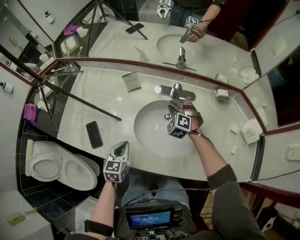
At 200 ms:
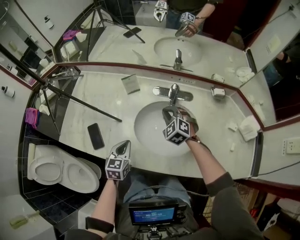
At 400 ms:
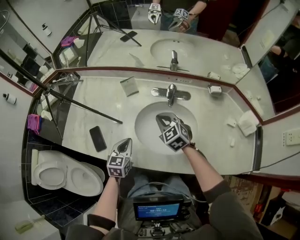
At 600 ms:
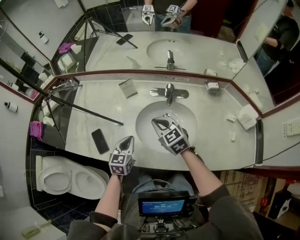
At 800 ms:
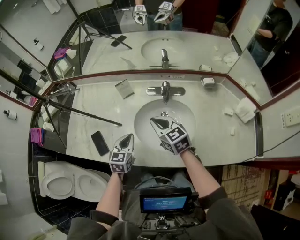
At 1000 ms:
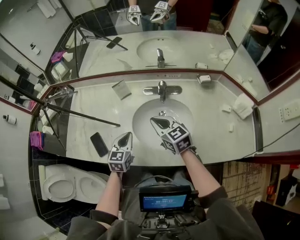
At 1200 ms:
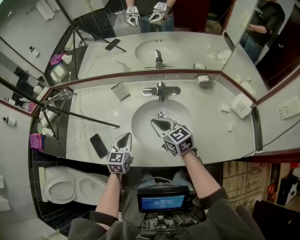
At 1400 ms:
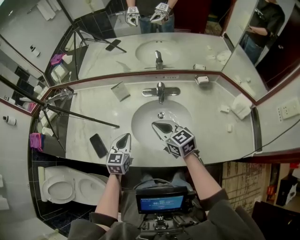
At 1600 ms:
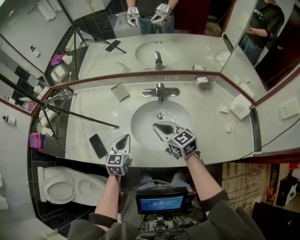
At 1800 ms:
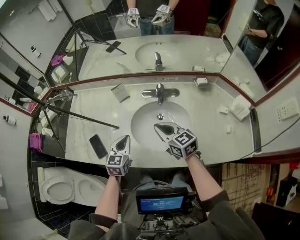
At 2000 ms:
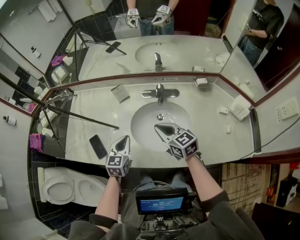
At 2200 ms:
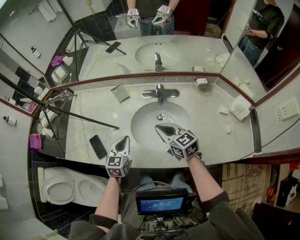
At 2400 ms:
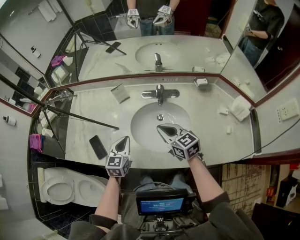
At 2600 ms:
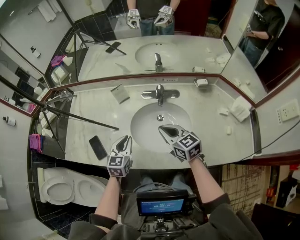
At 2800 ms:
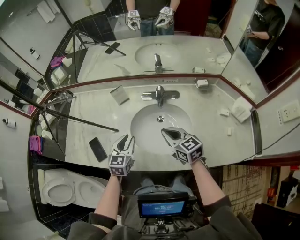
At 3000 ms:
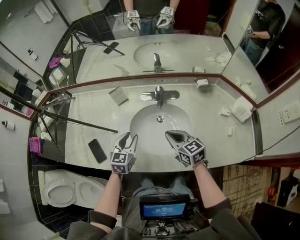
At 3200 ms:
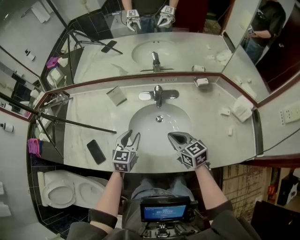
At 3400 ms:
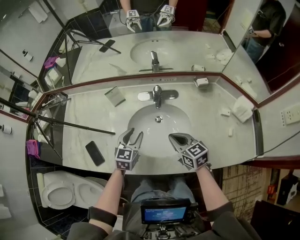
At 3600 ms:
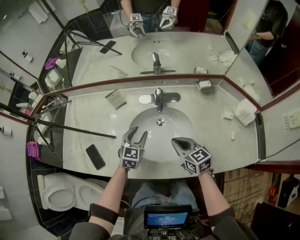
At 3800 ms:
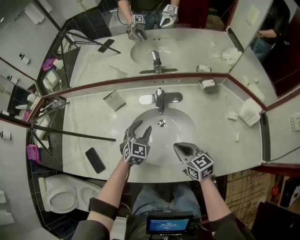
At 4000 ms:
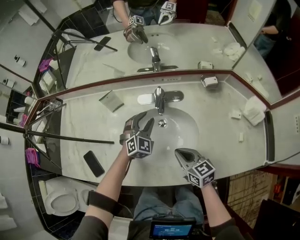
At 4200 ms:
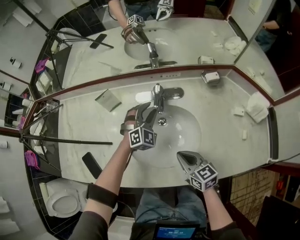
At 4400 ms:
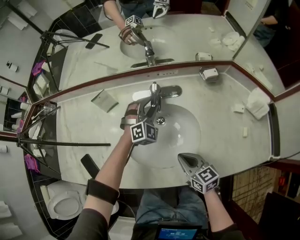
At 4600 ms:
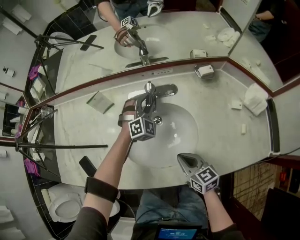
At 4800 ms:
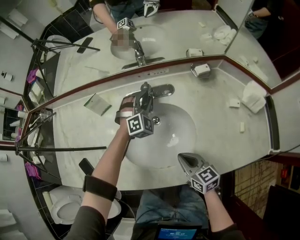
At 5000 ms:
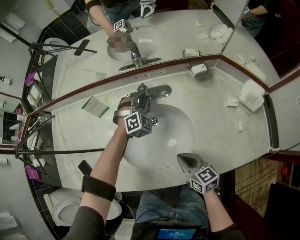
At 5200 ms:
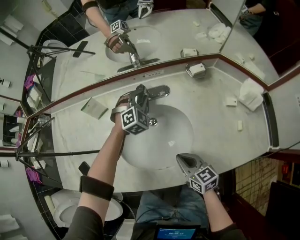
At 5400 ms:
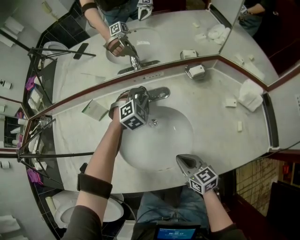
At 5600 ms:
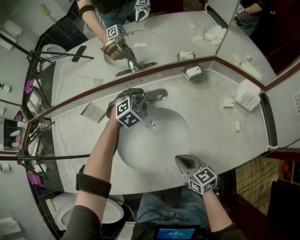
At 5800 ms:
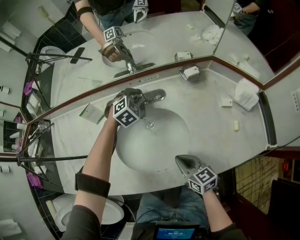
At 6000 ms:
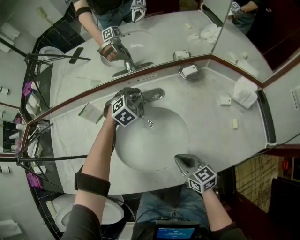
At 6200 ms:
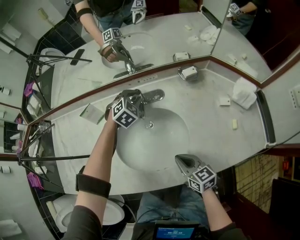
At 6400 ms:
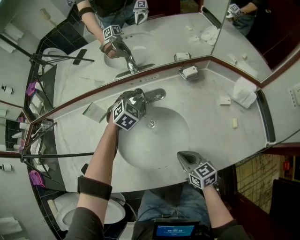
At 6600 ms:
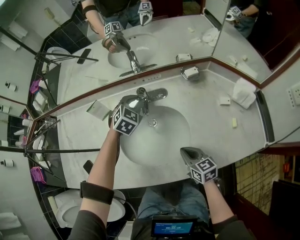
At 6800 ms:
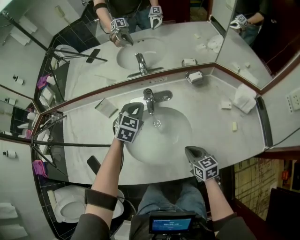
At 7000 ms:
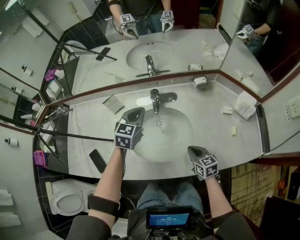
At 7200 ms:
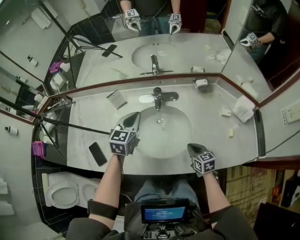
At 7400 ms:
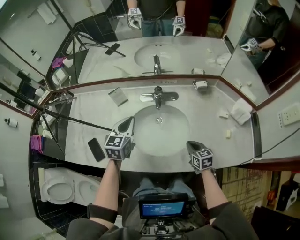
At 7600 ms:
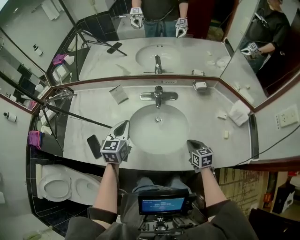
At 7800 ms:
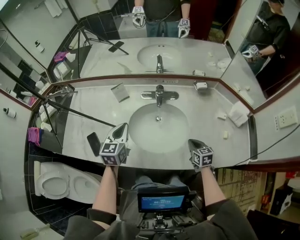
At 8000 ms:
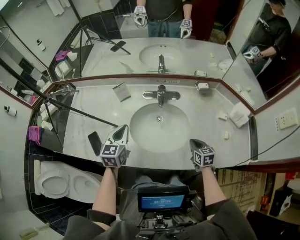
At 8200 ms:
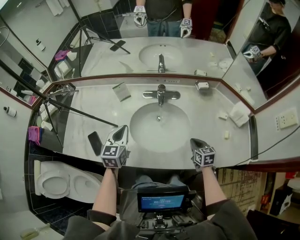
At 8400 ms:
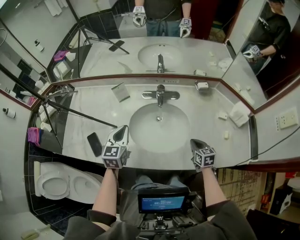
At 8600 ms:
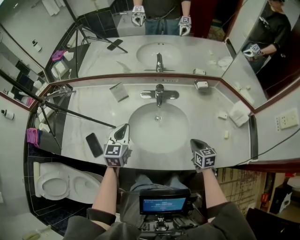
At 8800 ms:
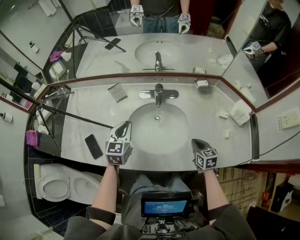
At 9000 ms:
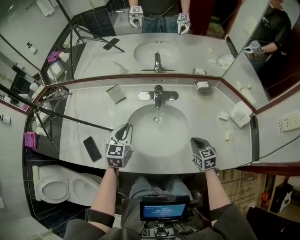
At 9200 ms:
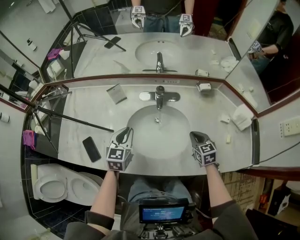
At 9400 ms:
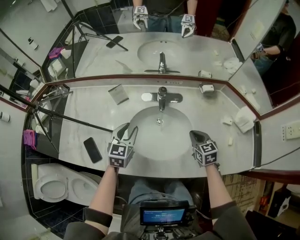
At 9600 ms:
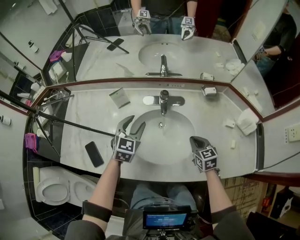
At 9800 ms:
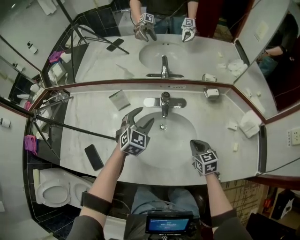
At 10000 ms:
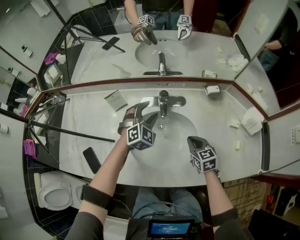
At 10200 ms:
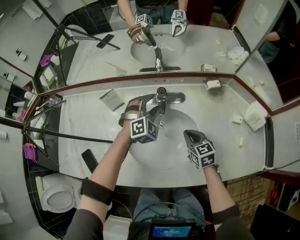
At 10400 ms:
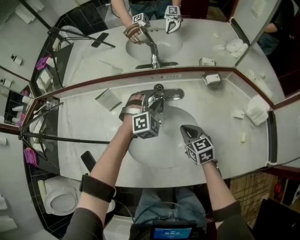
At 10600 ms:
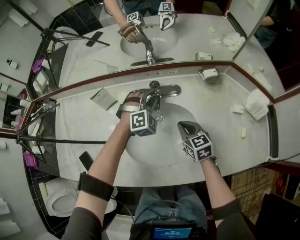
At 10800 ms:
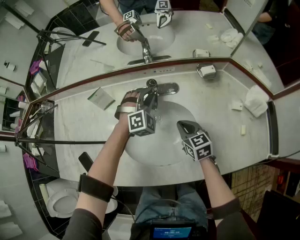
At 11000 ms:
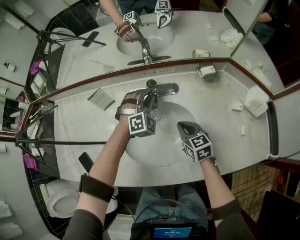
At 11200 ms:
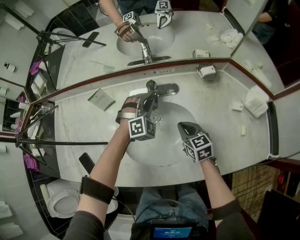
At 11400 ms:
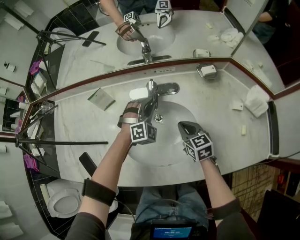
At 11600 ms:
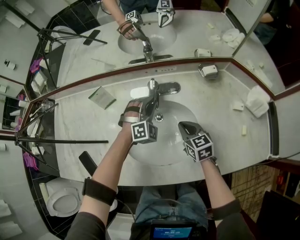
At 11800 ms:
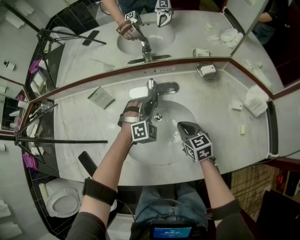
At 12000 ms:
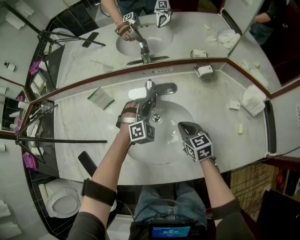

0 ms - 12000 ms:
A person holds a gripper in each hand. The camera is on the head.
0 ms - 1600 ms: The right gripper heads backward and upward, covering approximately 20 cm, and rotates around the line of its fingers by about 60 degrees, clockwise from behind, while the left gripper goes approximately 5 cm upward.
1600 ms - 3000 ms: The left gripper ends up about 5 cm from where it was, and opens, while the right gripper travels to the right by some 5 cm.
3000 ms - 4400 ms: The left gripper is displaced forward, to the right and downward by approximately 25 cm, and twists approximately 60 degrees clockwise, seen from behind, while the right gripper is displaced downward by some 10 cm.
4400 ms - 6000 ms: The left gripper goes roughly 5 cm forward, and changes its angle by about 30 degrees.
6000 ms - 7600 ms: The left gripper heads backward, upward and to the left, covering about 35 cm, rotates around the line of its fingers by some 60 degrees, counterclockwise from behind, and closes; the right gripper is displaced to the right by roughly 5 cm.
7600 ms - 9000 ms: The grippers move only a little.
9000 ms - 10400 ms: The right gripper is displaced forward and to the left by approximately 15 cm. Meanwhile the left gripper travels forward, to the right and downward by about 25 cm, twists about 60 degrees clockwise, seen from behind, and opens its fingers.
10400 ms - 12000 ms: The left gripper closes up.

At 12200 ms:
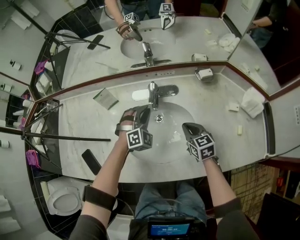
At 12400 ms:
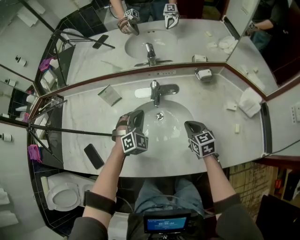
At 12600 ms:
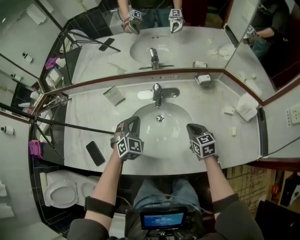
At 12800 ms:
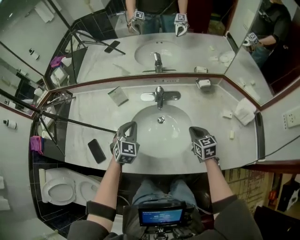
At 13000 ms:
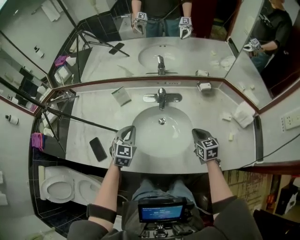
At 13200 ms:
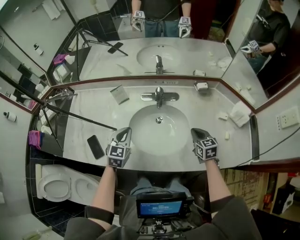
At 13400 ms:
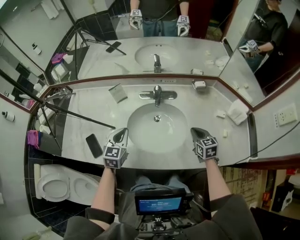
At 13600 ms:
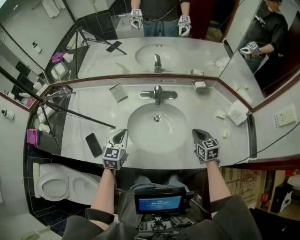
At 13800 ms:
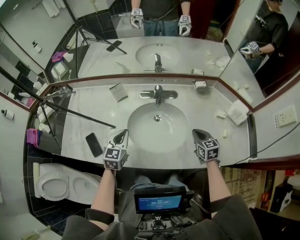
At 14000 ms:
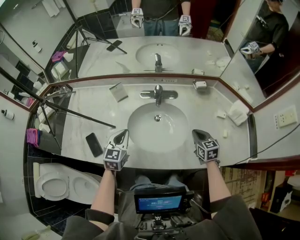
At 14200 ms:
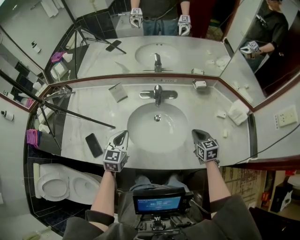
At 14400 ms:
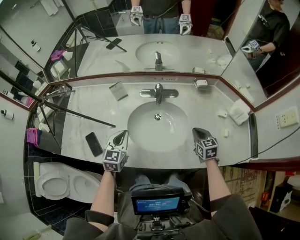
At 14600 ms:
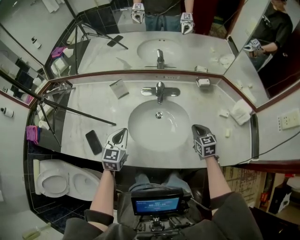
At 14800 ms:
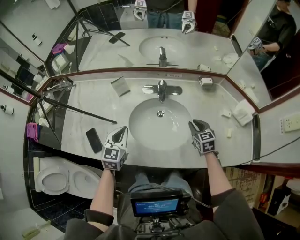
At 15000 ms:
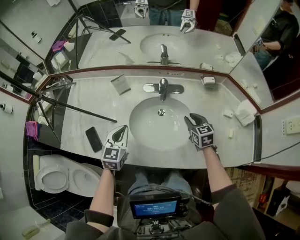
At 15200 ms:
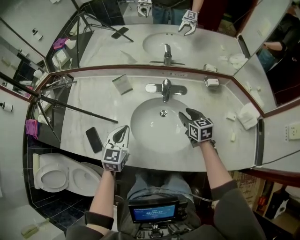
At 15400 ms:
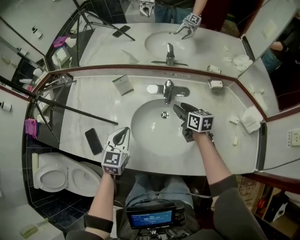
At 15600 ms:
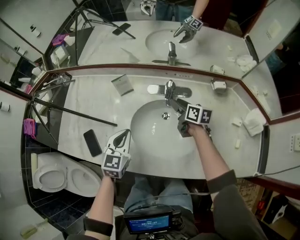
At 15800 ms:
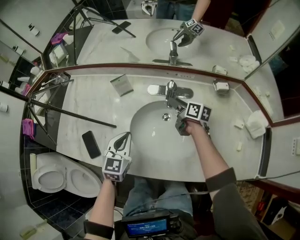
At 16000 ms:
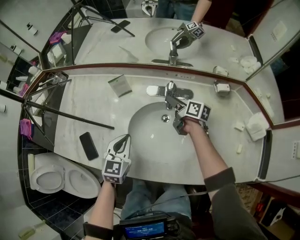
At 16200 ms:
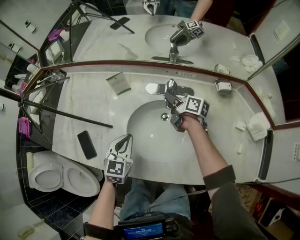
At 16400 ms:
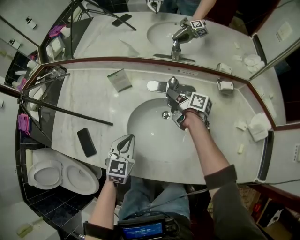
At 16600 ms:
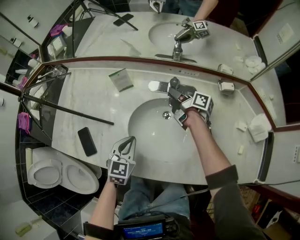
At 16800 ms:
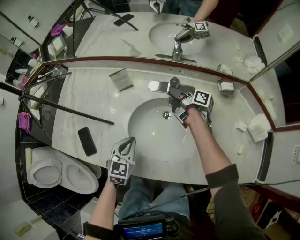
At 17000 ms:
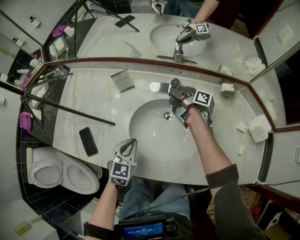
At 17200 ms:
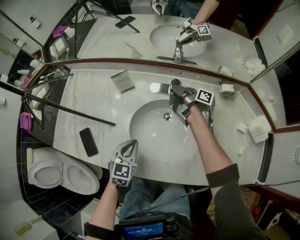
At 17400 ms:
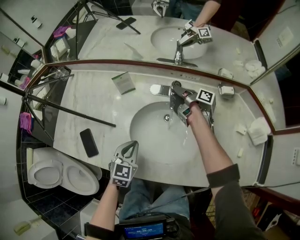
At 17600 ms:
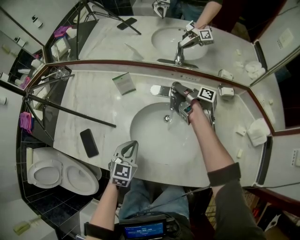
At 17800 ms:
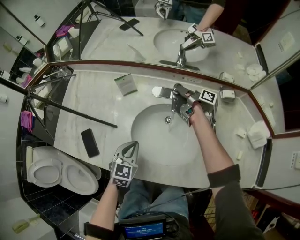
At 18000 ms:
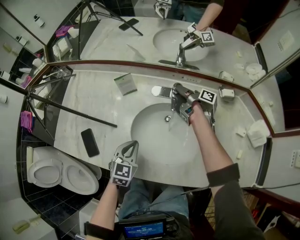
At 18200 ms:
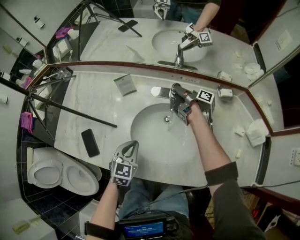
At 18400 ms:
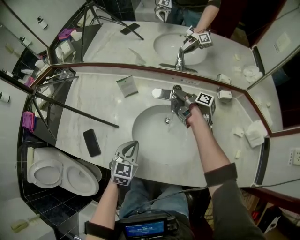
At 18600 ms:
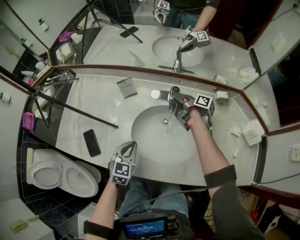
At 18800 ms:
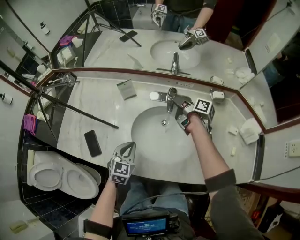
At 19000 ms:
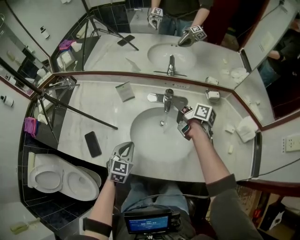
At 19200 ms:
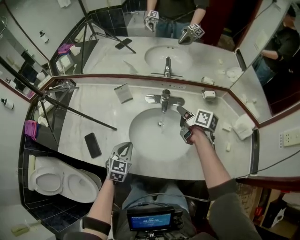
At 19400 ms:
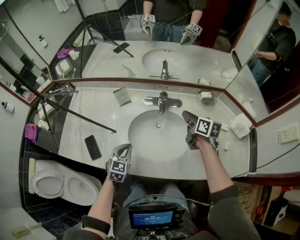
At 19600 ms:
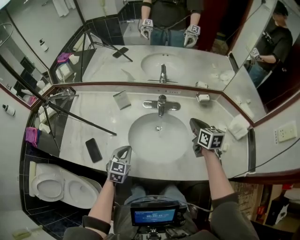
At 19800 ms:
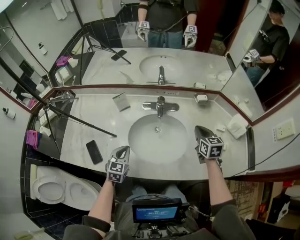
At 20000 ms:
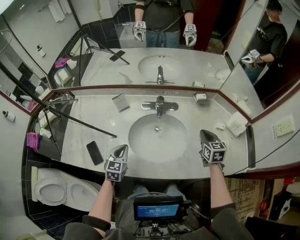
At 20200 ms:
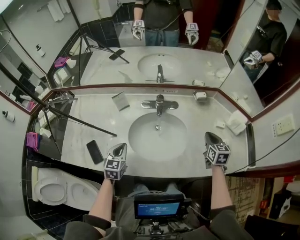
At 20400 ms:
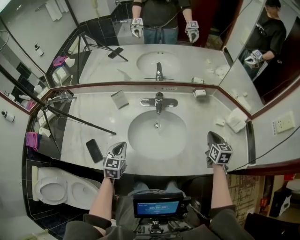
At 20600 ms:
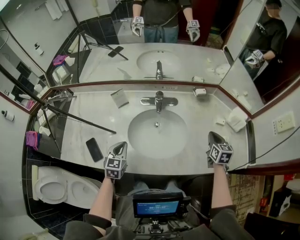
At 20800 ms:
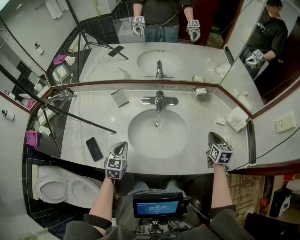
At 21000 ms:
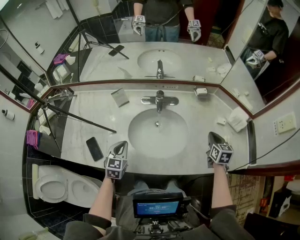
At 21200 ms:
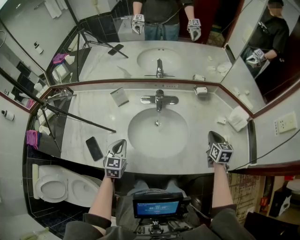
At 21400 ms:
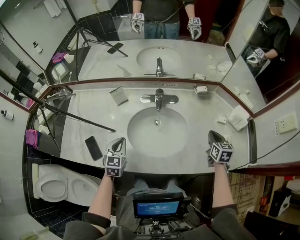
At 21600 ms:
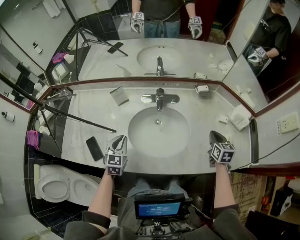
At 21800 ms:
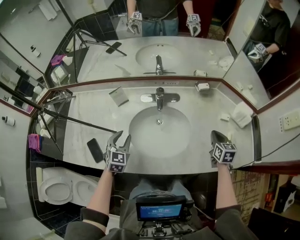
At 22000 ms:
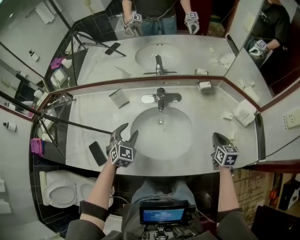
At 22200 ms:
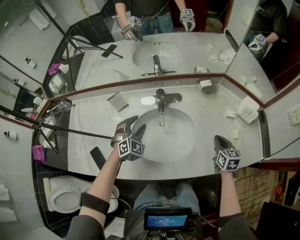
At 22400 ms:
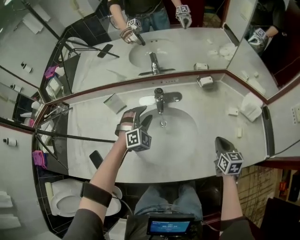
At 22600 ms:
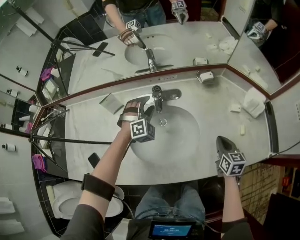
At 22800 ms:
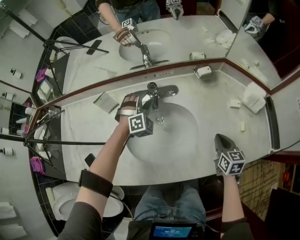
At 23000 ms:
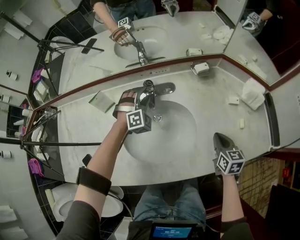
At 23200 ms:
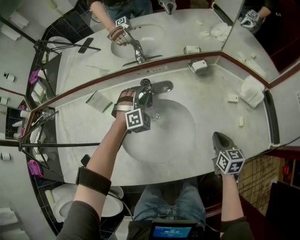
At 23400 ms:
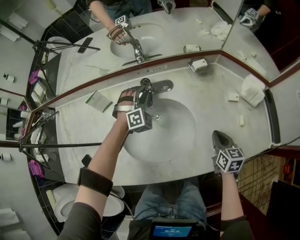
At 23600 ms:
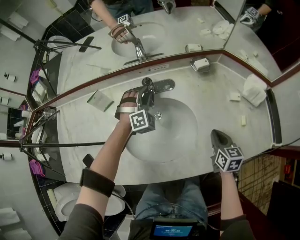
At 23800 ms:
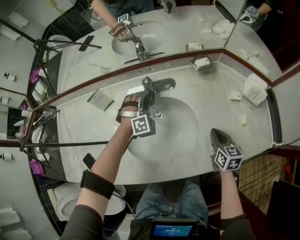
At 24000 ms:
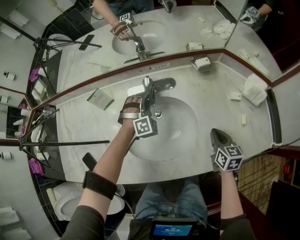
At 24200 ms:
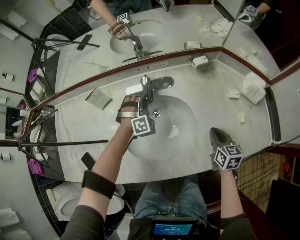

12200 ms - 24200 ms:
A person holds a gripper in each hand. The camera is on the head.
12200 ms - 13800 ms: The left gripper heads backward, to the left and upward, covering some 25 cm, and rolls counterclockwise, seen from behind, by approximately 60 degrees. The right gripper heads backward, upward and to the right, covering approximately 10 cm.
13800 ms - 15200 ms: The right gripper goes about 15 cm forward and to the left, and opens.
15200 ms - 16600 ms: The left gripper moves downward, some 10 cm. The right gripper shifts roughly 15 cm forward and to the left, rotates around the line of its fingers by approximately 60 degrees, clockwise from behind, and closes up.
16600 ms - 18200 ms: The grippers stay close to where they were, moving slightly.
18200 ms - 19800 ms: The right gripper shifts about 30 cm backward, to the right and upward, rotates around the line of its fingers by about 80 degrees, counterclockwise from behind, and closes its fingers, while the left gripper moves approximately 5 cm.
19800 ms - 21200 ms: The right gripper shifts approximately 10 cm to the right.
21200 ms - 22600 ms: The left gripper shifts some 30 cm forward and to the right, rolls clockwise, seen from behind, by about 60 degrees, and opens its fingers; the right gripper moves downward, about 5 cm.
22600 ms - 24200 ms: The left gripper moves downward, roughly 5 cm, and closes up.
